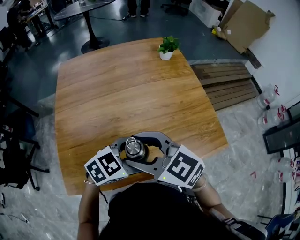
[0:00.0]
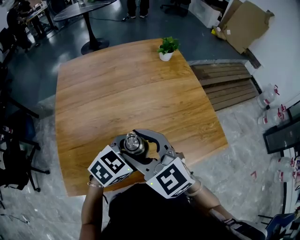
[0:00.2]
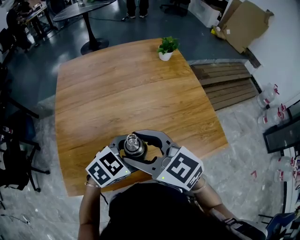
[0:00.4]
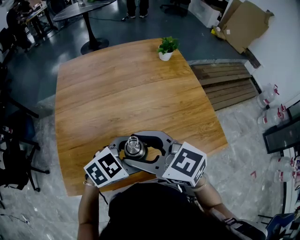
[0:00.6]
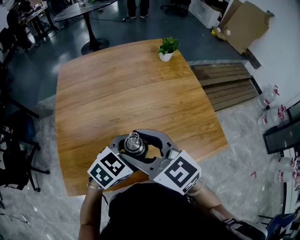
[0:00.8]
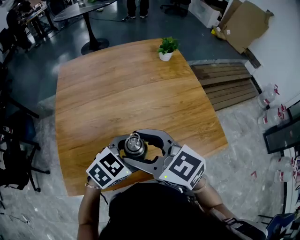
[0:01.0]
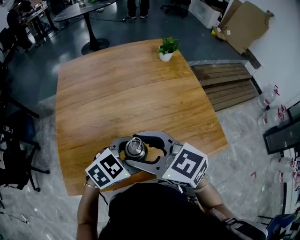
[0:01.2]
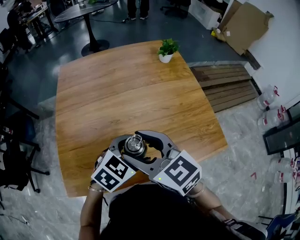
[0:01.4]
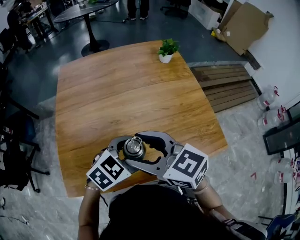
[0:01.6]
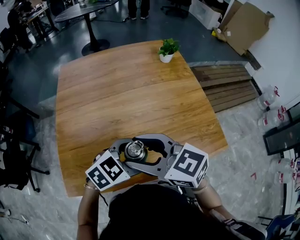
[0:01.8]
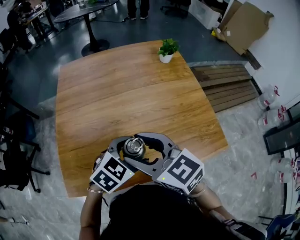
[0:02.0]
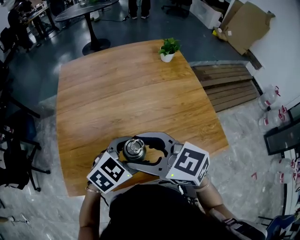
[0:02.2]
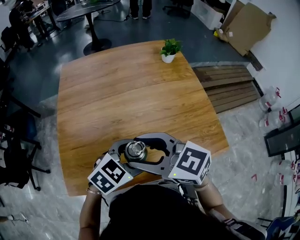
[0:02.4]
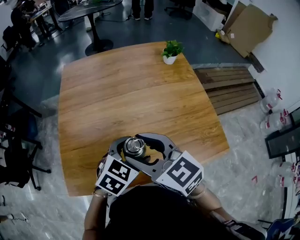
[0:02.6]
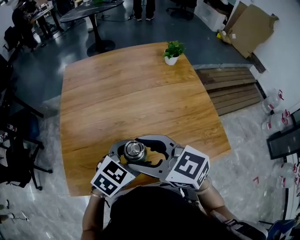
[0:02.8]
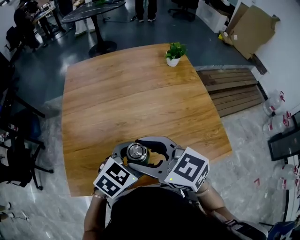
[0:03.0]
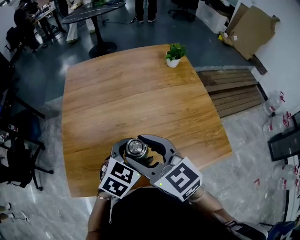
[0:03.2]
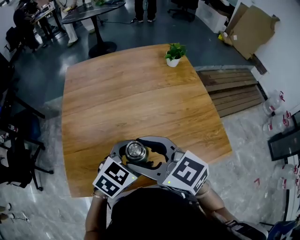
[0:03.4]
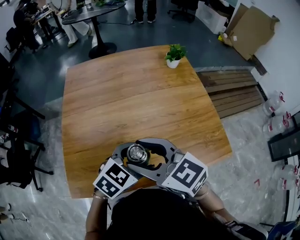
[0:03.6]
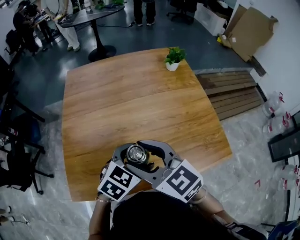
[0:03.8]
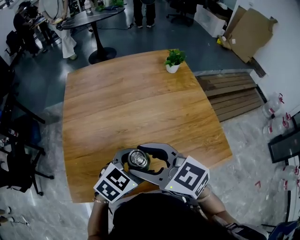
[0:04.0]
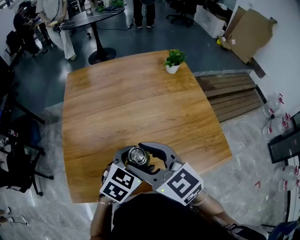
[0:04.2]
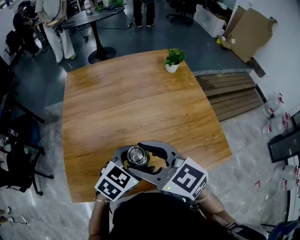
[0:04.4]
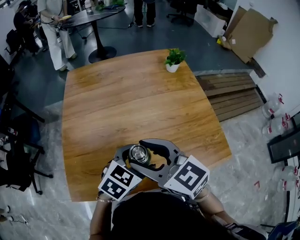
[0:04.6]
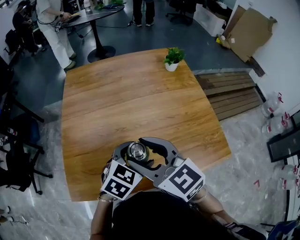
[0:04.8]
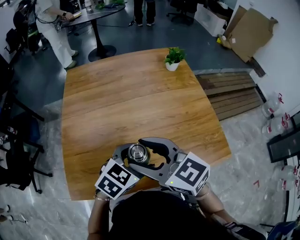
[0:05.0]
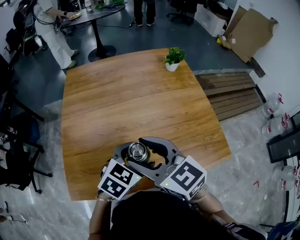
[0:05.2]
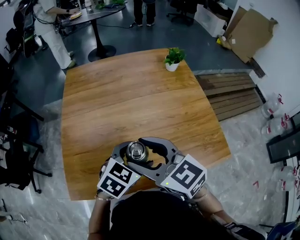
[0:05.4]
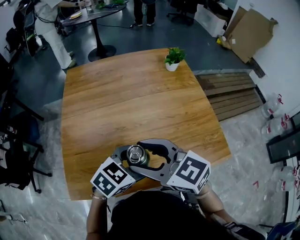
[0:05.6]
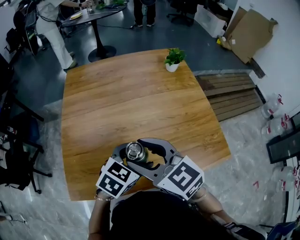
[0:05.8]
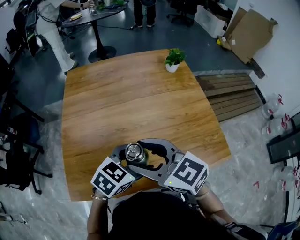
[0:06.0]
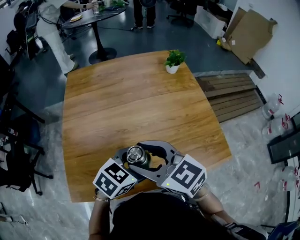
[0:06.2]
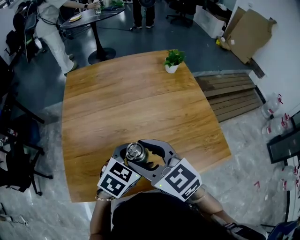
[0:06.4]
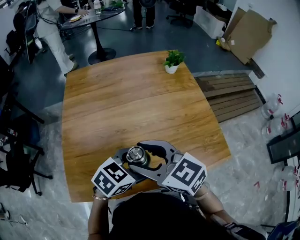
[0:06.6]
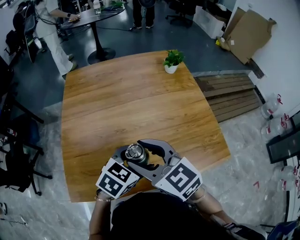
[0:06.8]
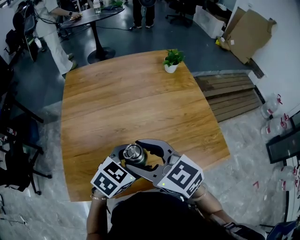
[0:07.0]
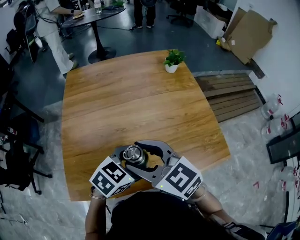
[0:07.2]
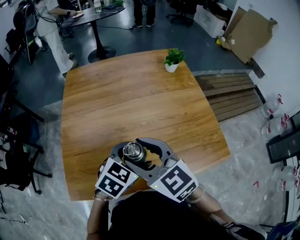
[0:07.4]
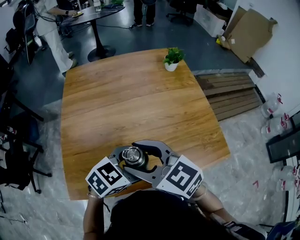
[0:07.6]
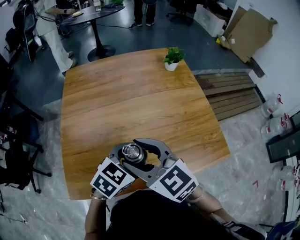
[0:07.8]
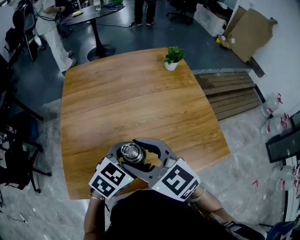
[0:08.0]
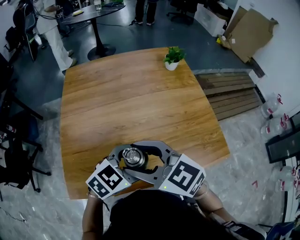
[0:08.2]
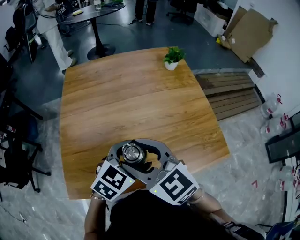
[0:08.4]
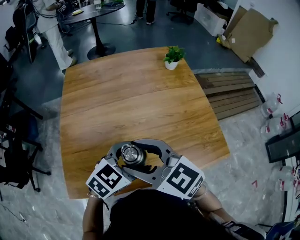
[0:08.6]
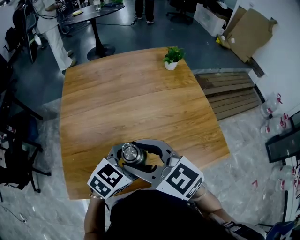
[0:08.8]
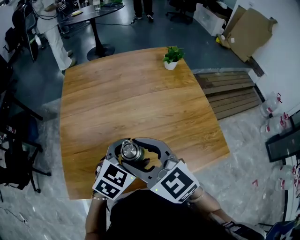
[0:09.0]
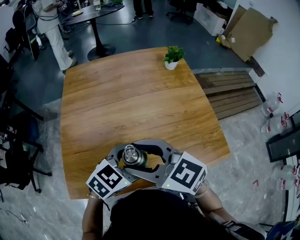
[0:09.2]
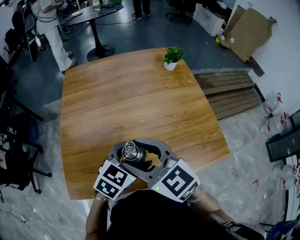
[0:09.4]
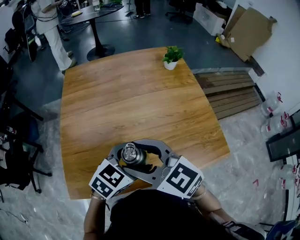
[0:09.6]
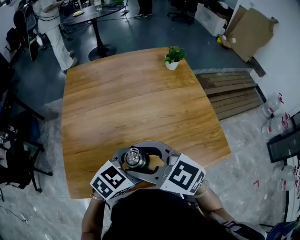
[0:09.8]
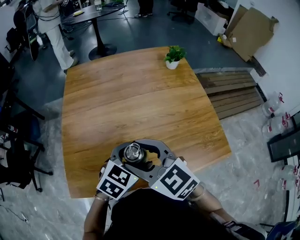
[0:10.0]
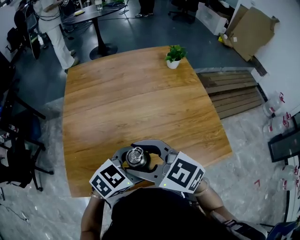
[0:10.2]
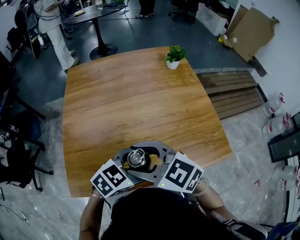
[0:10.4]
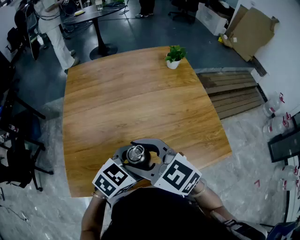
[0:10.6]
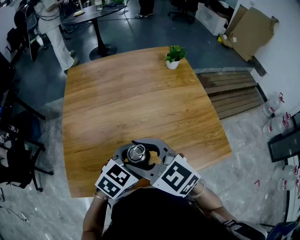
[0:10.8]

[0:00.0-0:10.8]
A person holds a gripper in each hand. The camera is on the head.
0:00.0 to 0:01.6: The grippers make only small movements.
0:01.6 to 0:10.8: The grippers make only small movements.

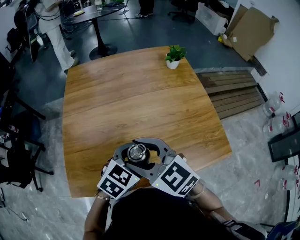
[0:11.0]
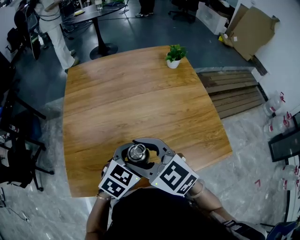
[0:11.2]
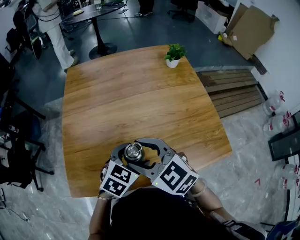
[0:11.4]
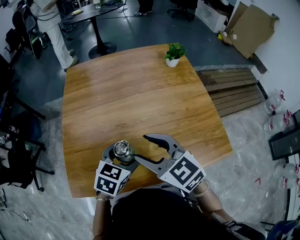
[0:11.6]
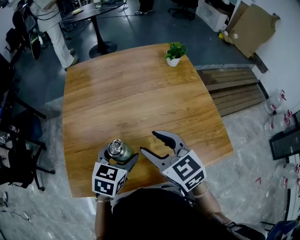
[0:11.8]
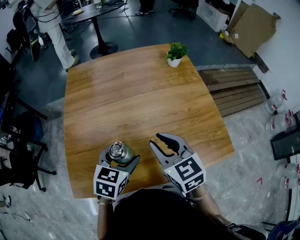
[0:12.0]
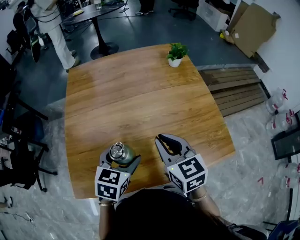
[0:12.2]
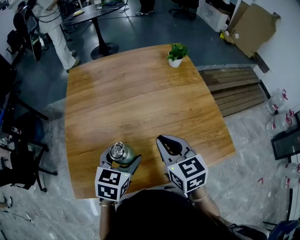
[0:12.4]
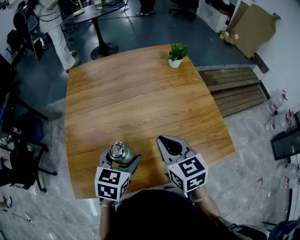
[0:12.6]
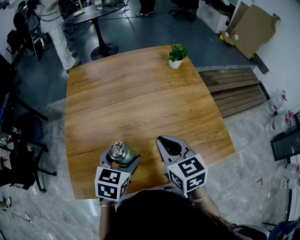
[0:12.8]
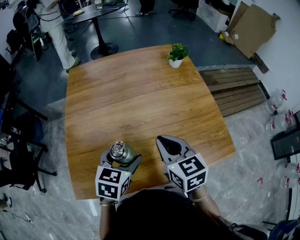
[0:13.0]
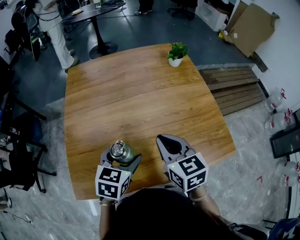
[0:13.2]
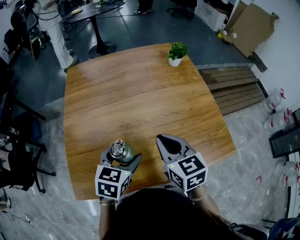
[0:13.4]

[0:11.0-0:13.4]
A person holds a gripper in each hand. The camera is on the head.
0:11.0 to 0:12.2: The left gripper moves to the left, roughly 5 cm, and changes its angle by about 20 degrees. The right gripper moves to the right, roughly 10 cm, swivels some 30 degrees, and closes its fingers.
0:12.2 to 0:13.4: There are only small adjustments of the grippers.

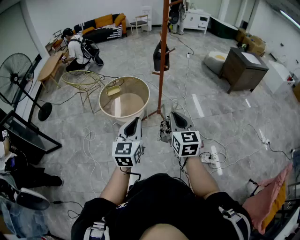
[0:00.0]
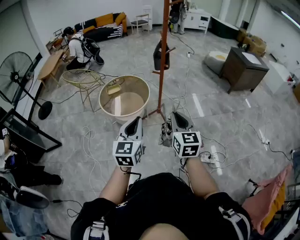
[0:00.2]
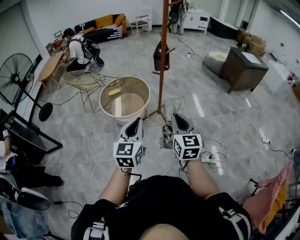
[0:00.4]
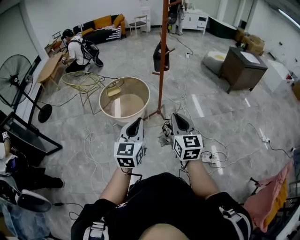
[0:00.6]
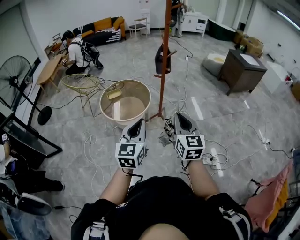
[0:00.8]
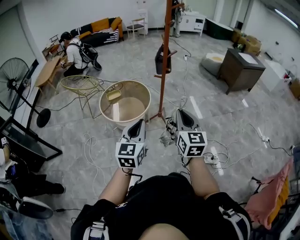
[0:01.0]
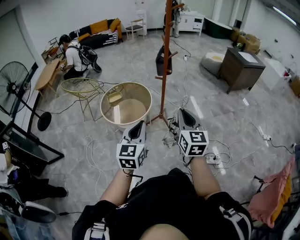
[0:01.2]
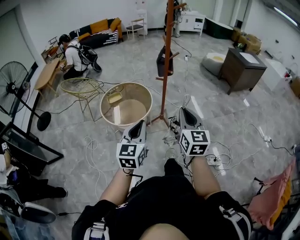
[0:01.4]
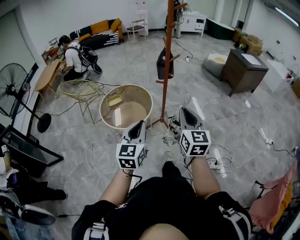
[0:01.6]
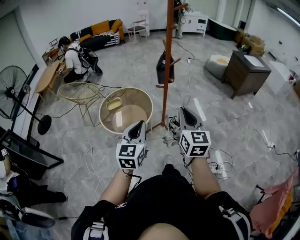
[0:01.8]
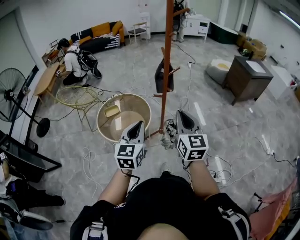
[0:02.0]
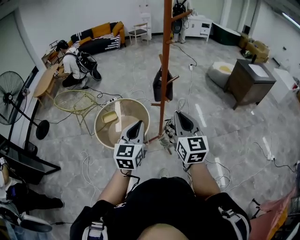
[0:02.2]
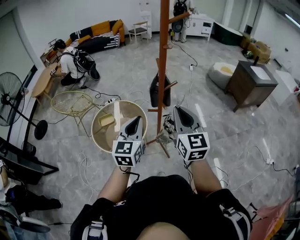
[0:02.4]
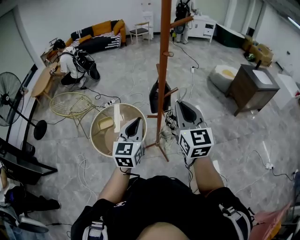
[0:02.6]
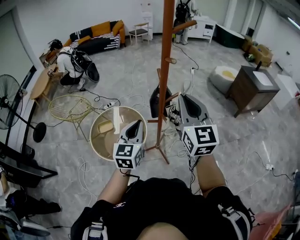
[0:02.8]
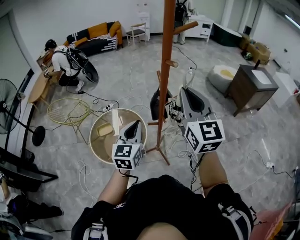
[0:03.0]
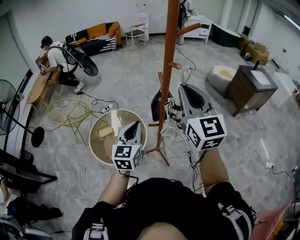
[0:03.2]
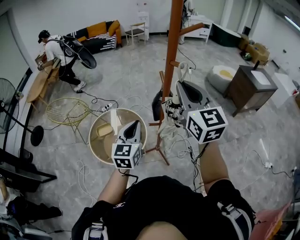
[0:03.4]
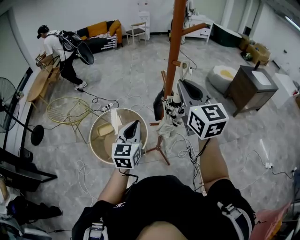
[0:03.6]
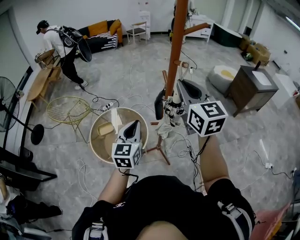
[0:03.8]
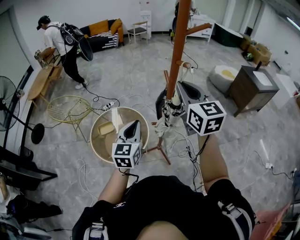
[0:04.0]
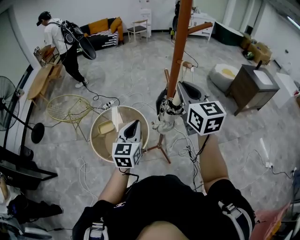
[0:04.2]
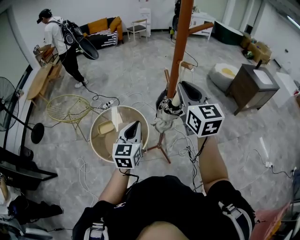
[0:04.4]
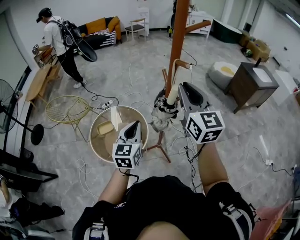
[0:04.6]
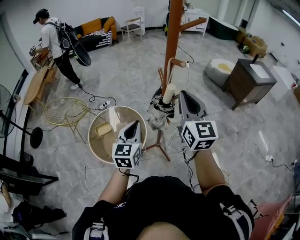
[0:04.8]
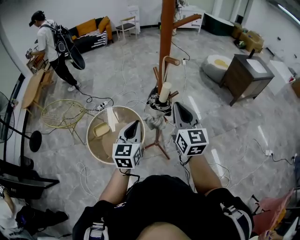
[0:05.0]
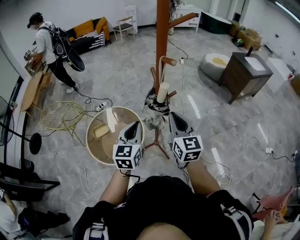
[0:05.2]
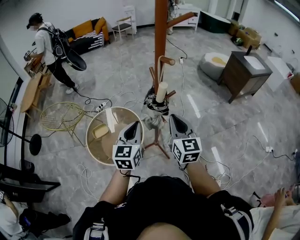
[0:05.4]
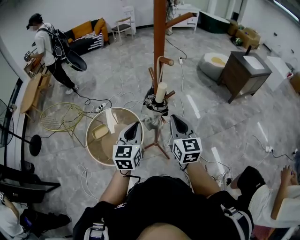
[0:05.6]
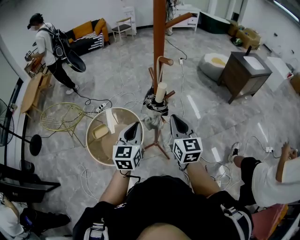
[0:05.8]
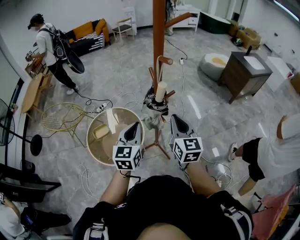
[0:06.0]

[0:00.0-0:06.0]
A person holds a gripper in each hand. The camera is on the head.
0:00.0 to 0:01.6: The left gripper shifts approximately 15 cm forward and to the left; the right gripper travels forward by approximately 10 cm.
0:01.6 to 0:03.0: Both grippers are carried forward, about 50 cm.
0:03.0 to 0:04.4: The left gripper shifts by approximately 5 cm. Meanwhile the right gripper is displaced forward by roughly 10 cm.
0:04.4 to 0:06.0: The left gripper heads to the right, covering some 5 cm. Meanwhile the right gripper goes about 15 cm downward and to the right.

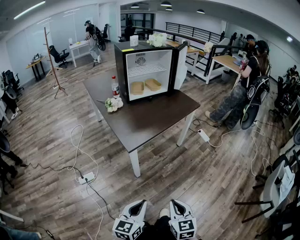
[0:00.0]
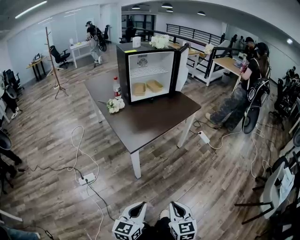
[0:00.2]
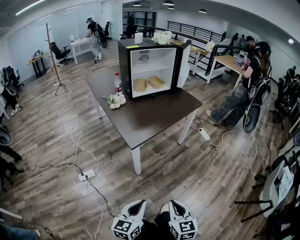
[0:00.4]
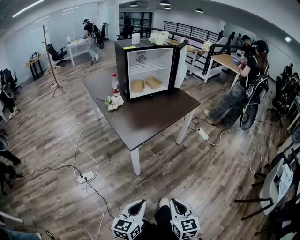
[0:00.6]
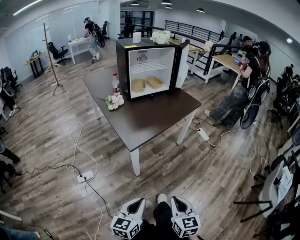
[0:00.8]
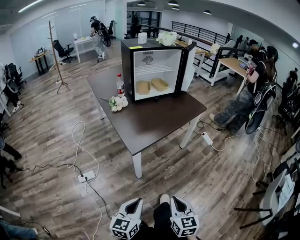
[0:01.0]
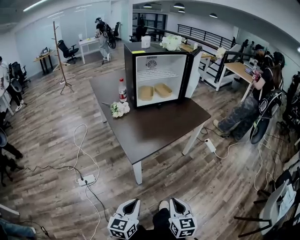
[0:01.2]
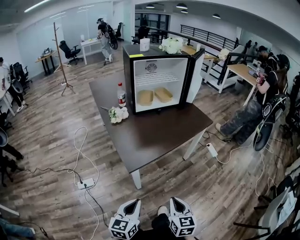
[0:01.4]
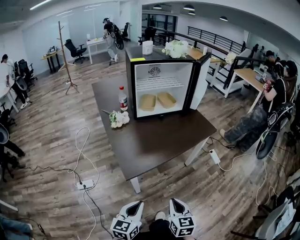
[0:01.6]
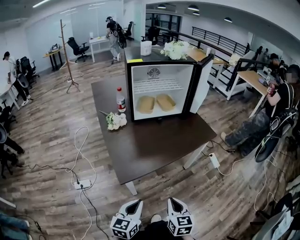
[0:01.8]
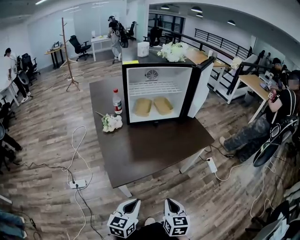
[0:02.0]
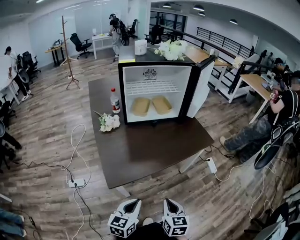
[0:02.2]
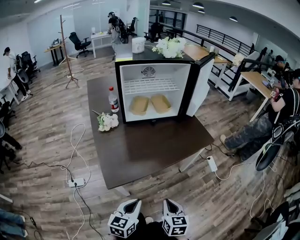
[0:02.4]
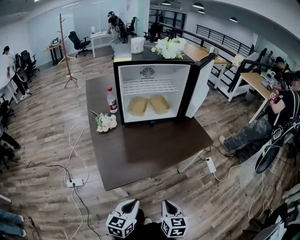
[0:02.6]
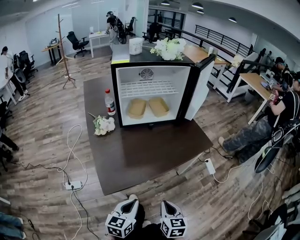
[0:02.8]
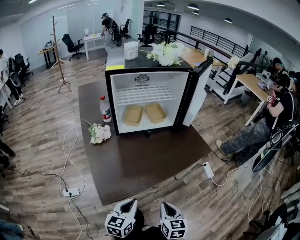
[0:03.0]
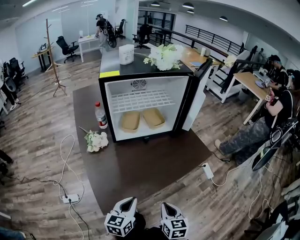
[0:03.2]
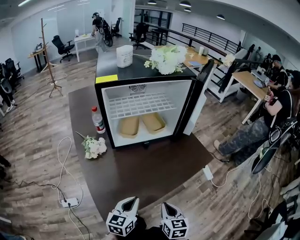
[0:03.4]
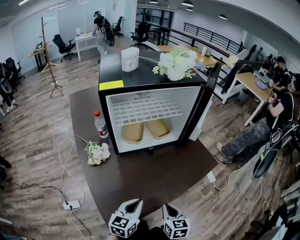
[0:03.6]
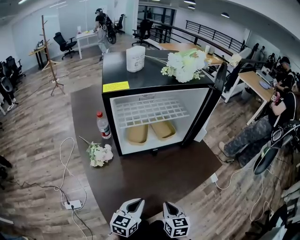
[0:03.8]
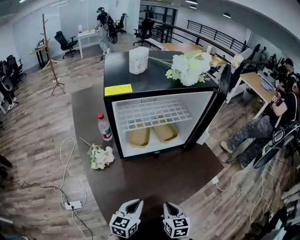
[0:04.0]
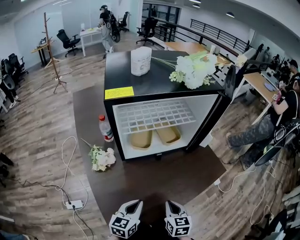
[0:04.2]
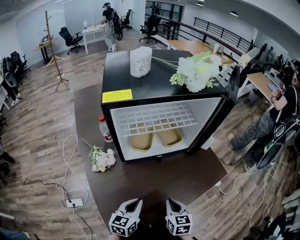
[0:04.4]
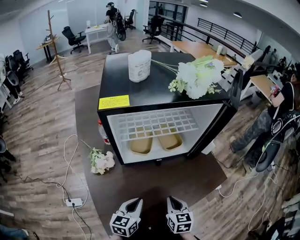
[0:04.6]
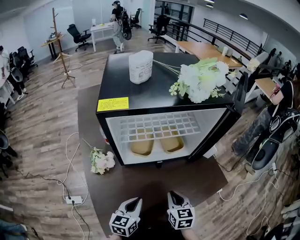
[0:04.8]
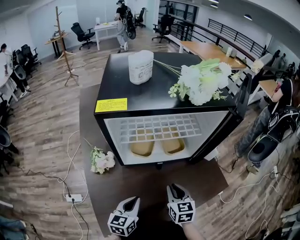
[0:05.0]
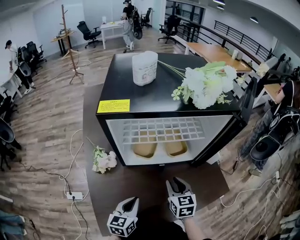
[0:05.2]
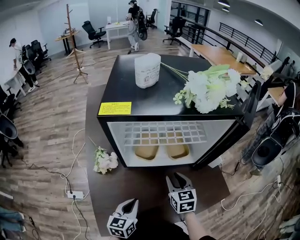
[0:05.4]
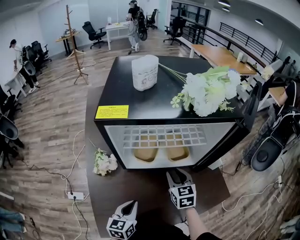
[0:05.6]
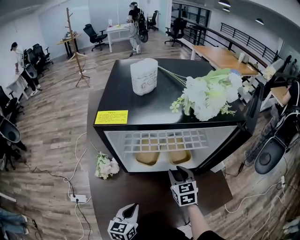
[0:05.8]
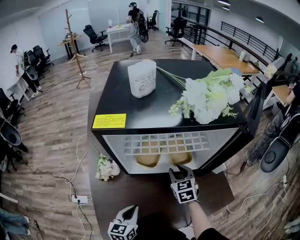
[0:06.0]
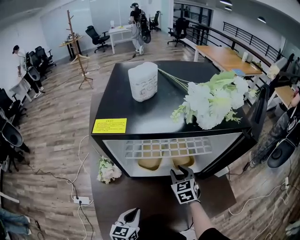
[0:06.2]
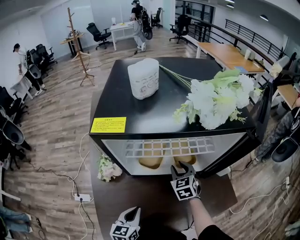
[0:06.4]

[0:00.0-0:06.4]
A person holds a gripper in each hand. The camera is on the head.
0:00.0 to 0:01.6: Both grippers travel together forward, roughly 20 cm.
0:01.6 to 0:03.2: Both grippers move forward, roughly 25 cm.
0:03.2 to 0:04.8: The grippers both shift forward by approximately 20 cm.
0:04.8 to 0:06.4: The right gripper shifts some 20 cm forward, swivels some 30 degrees, and opens up.
